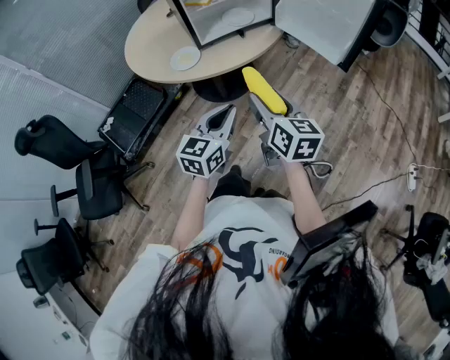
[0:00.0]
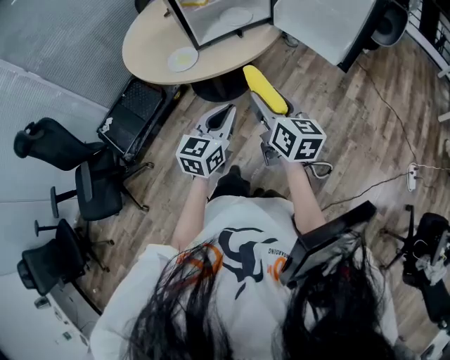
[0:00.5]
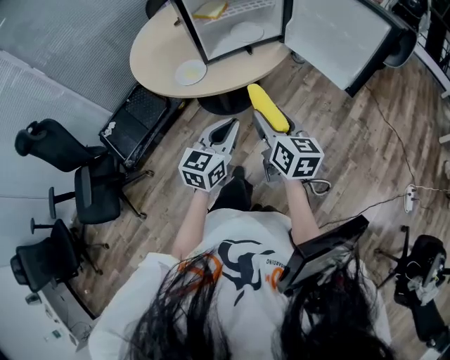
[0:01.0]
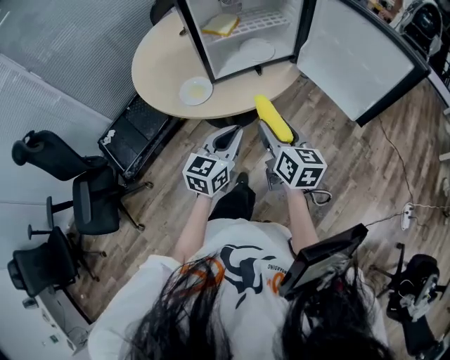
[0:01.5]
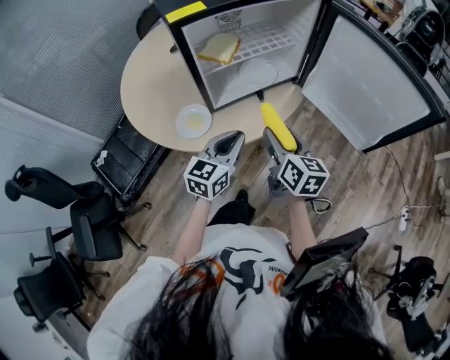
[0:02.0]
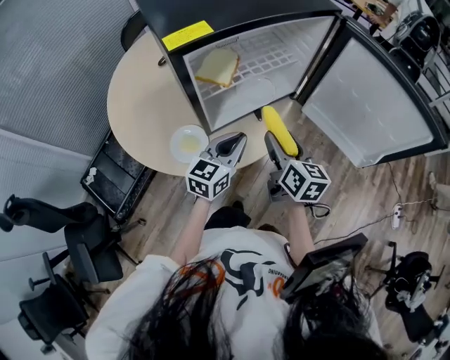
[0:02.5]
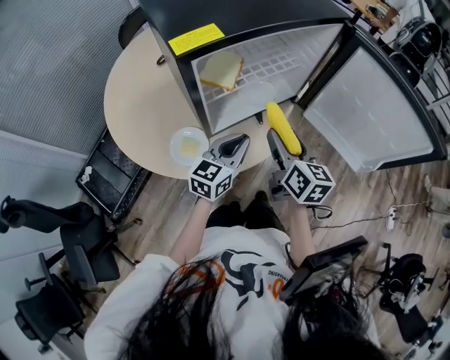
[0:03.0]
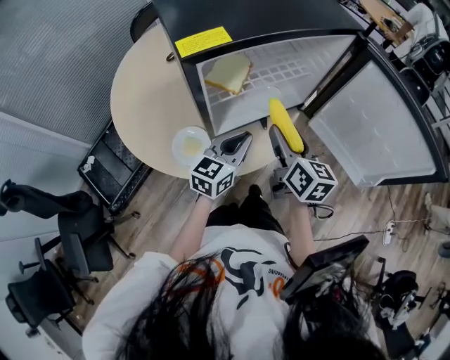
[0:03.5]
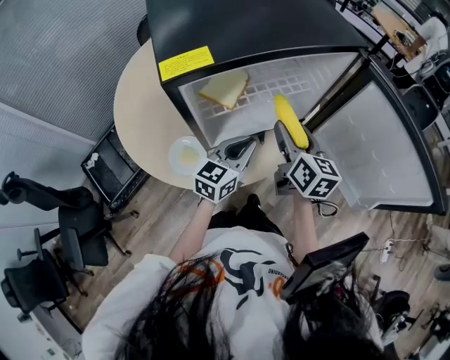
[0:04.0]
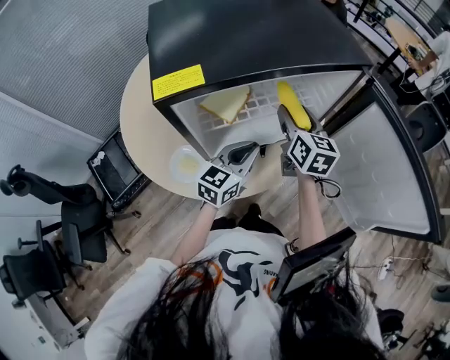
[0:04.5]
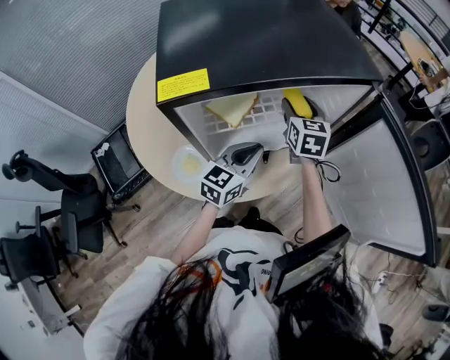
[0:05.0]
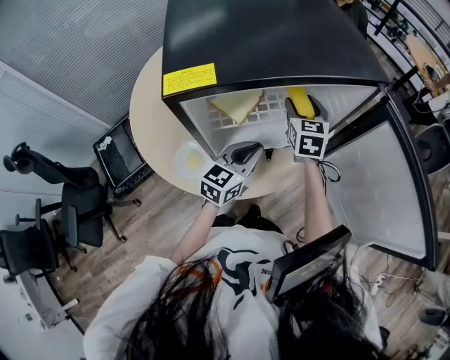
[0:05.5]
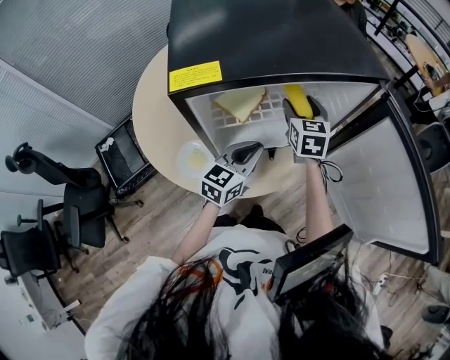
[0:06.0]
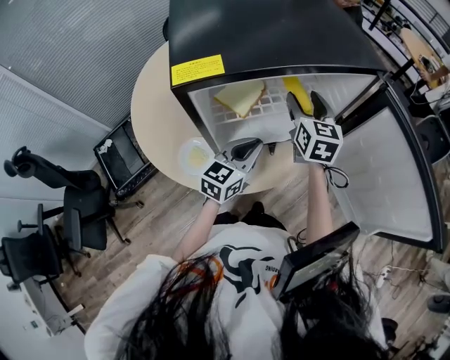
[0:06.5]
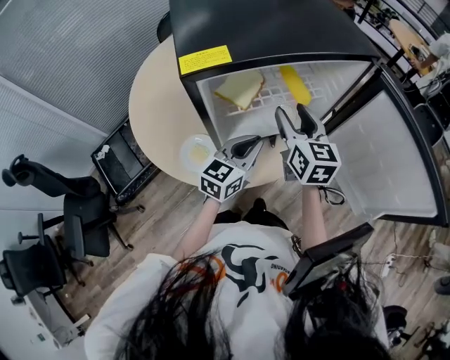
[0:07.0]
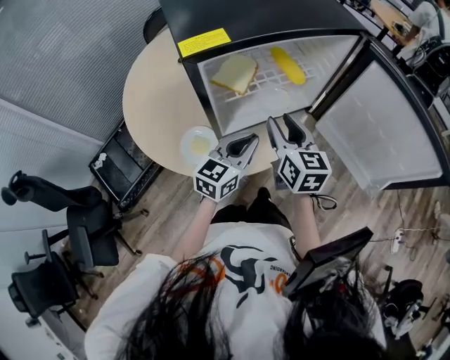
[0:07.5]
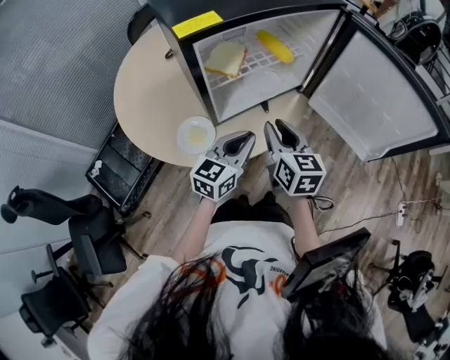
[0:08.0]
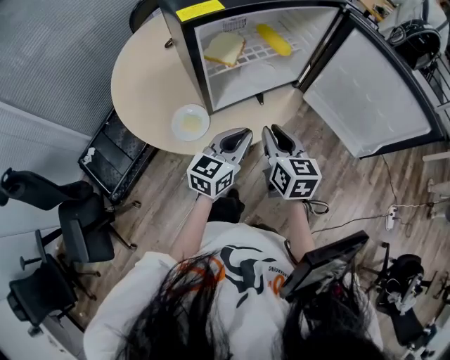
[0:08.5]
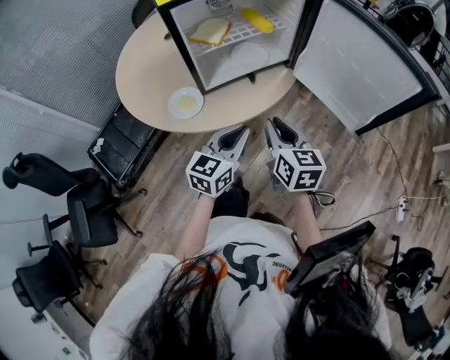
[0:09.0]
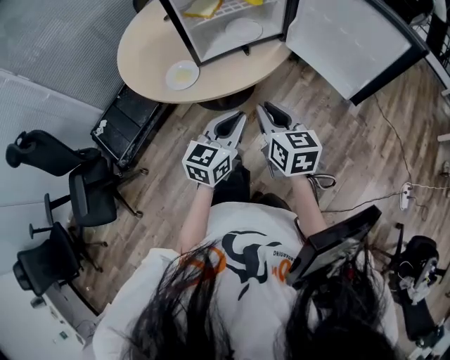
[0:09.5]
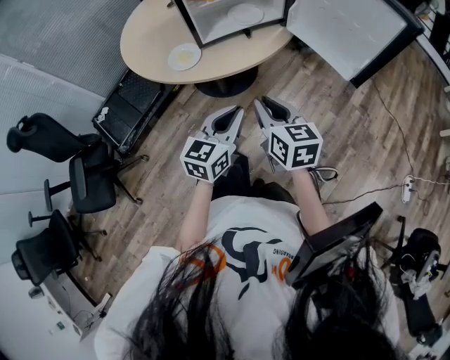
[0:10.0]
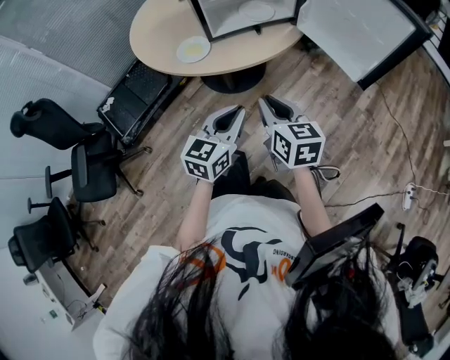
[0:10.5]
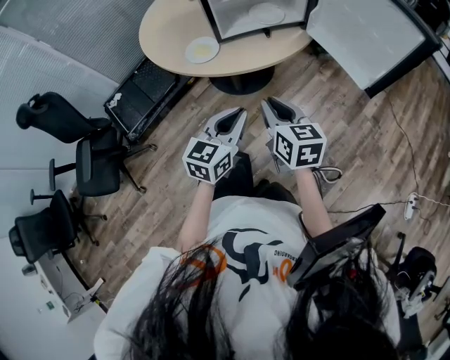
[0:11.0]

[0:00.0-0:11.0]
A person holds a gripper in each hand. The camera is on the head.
0:00.0 to 0:02.0: Both grippers travel together forward, approximately 25 cm.
0:02.0 to 0:03.5: The two grippers go approximately 10 cm forward.
0:03.5 to 0:05.5: The left gripper heads forward, covering roughly 10 cm; the right gripper goes roughly 25 cm forward, and swivels some 30 degrees.
0:05.5 to 0:07.5: The right gripper travels backward by approximately 20 cm, and turns by roughly 20 degrees, while the left gripper shifts some 10 cm backward.
0:07.5 to 0:09.0: Both grippers travel together backward and to the right, roughly 20 cm. The right gripper closes up.
0:09.0 to 0:11.0: The grippers both shift backward by some 15 cm.

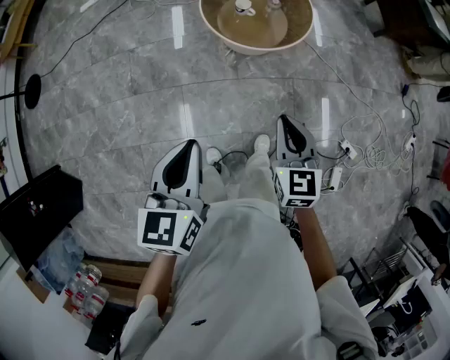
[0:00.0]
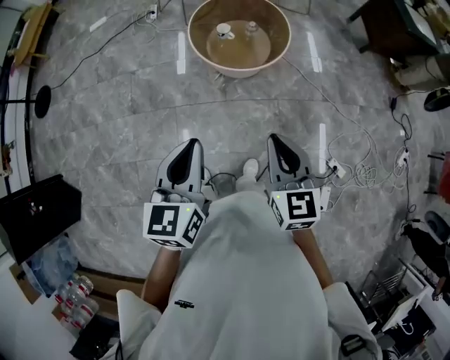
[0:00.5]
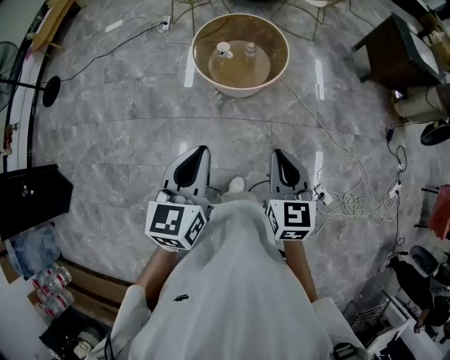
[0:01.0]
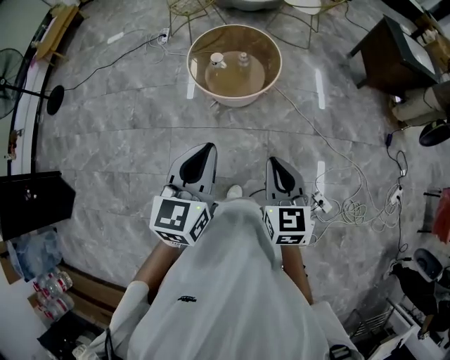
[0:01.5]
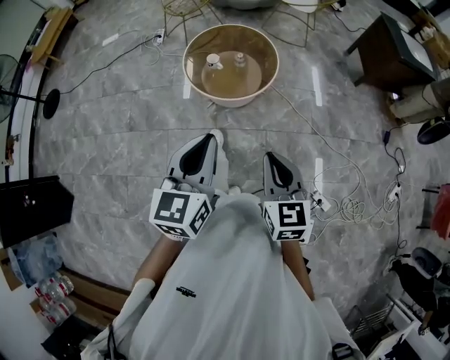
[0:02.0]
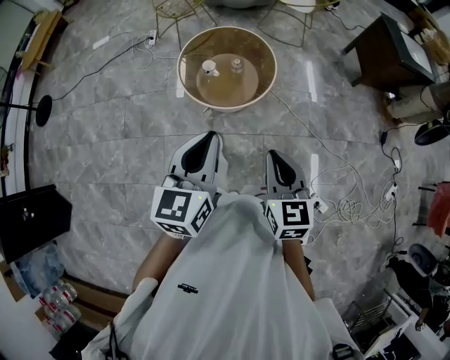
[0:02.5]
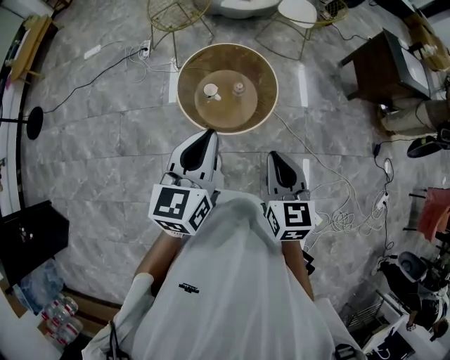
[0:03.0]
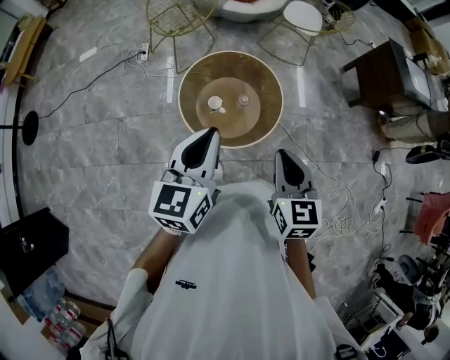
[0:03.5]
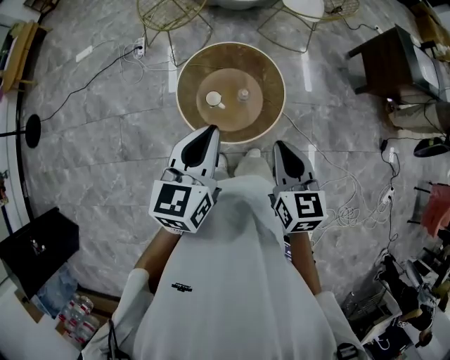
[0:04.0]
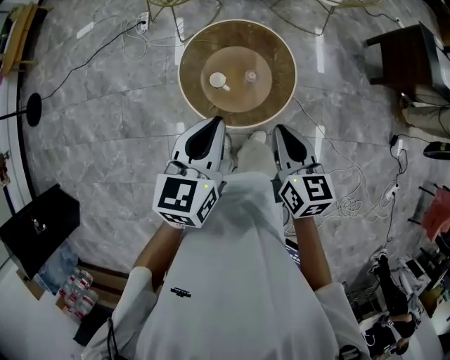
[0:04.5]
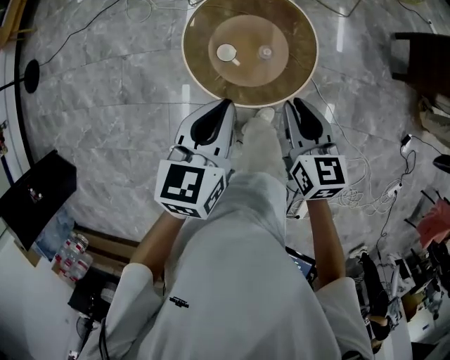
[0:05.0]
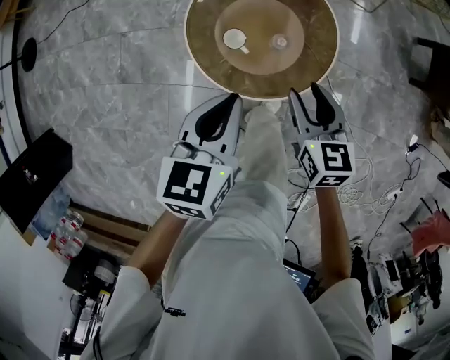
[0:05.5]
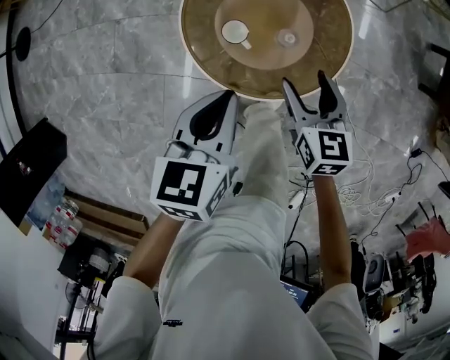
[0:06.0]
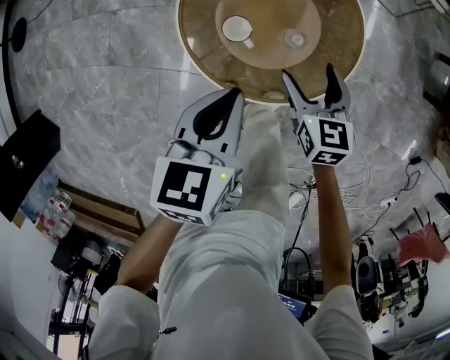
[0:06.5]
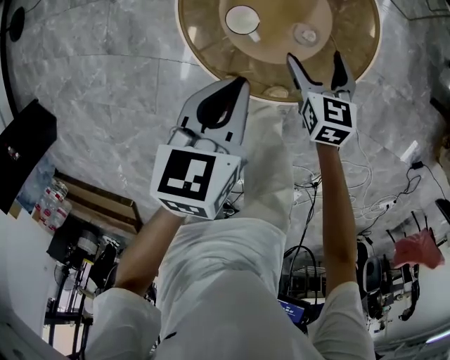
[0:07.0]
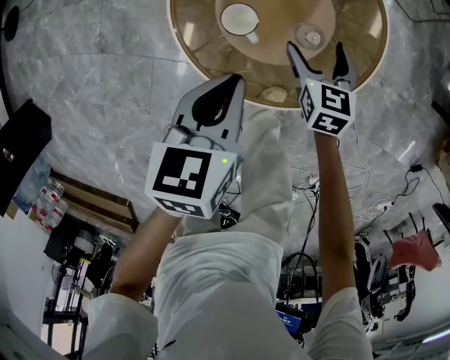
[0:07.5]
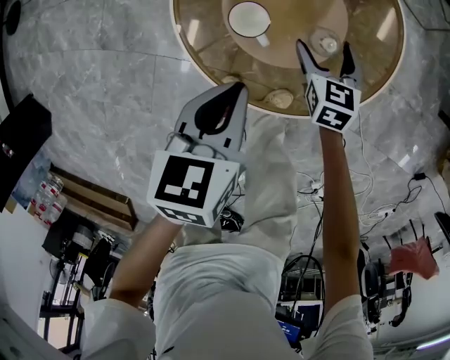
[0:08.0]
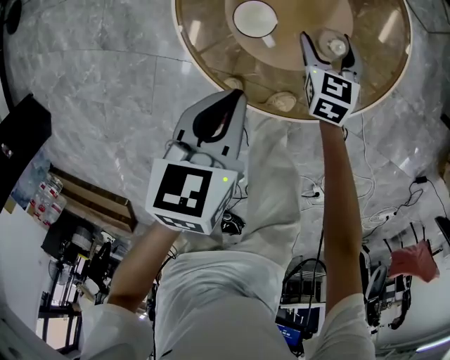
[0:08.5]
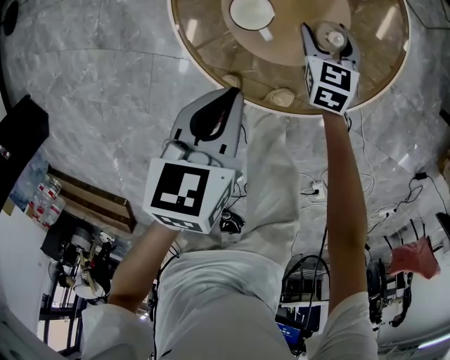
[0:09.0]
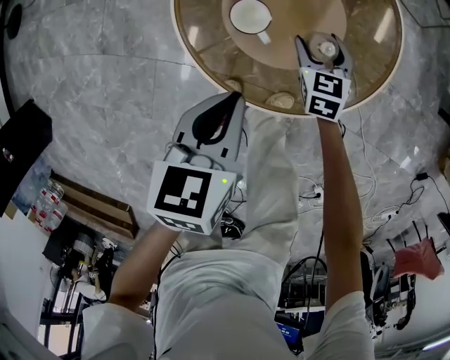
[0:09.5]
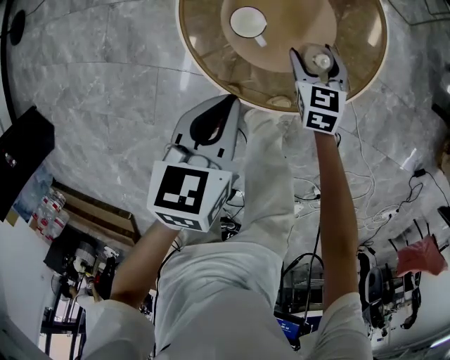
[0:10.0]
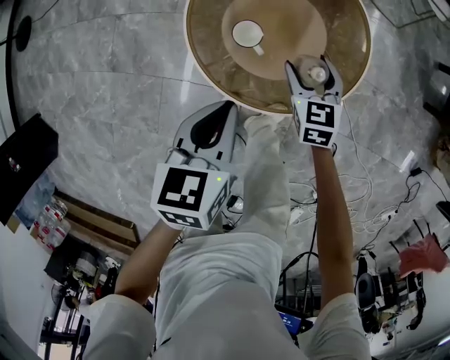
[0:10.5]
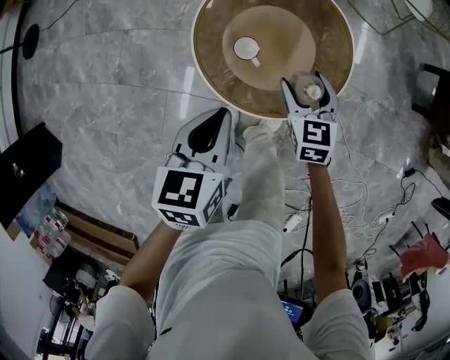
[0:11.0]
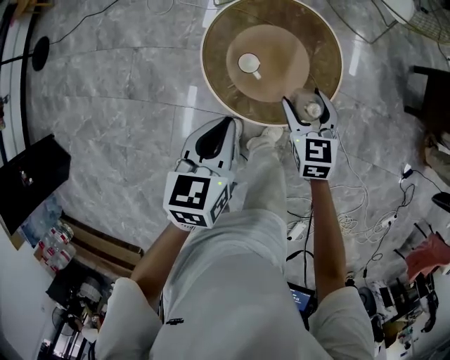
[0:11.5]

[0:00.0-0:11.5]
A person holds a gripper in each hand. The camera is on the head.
0:00.0 to 0:02.0: The left gripper goes about 25 cm to the right. Meanwhile the right gripper travels to the right and upward by about 20 cm.
0:02.0 to 0:04.0: Both grippers move forward, about 35 cm.
0:04.0 to 0:06.0: The right gripper travels downward and forward by some 35 cm, and opens, while the left gripper shifts some 25 cm downward, and swivels about 30 degrees.
0:06.0 to 0:07.5: The right gripper goes approximately 20 cm downward and forward, while the left gripper heads downward, covering roughly 15 cm.
0:07.5 to 0:09.5: The right gripper is displaced downward by some 5 cm.
0:09.5 to 0:11.5: The grippers both shift upward by about 25 cm.

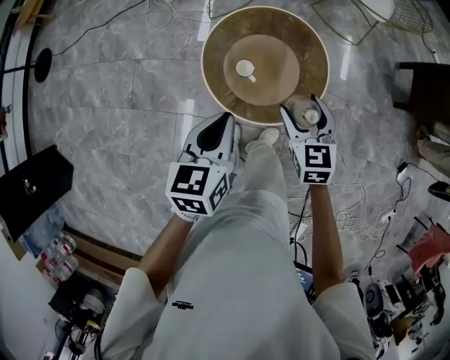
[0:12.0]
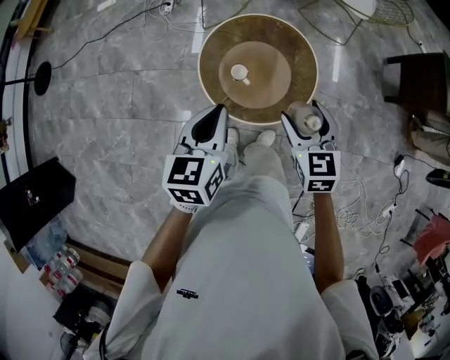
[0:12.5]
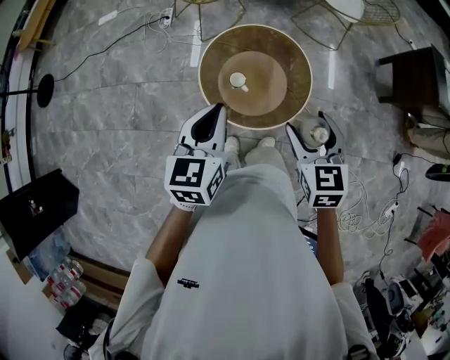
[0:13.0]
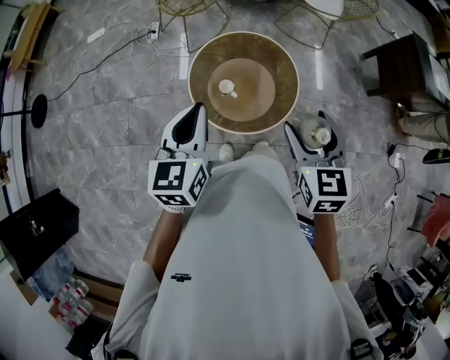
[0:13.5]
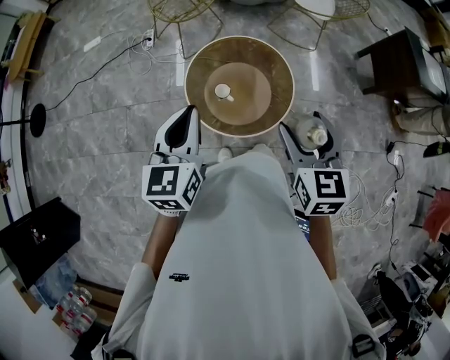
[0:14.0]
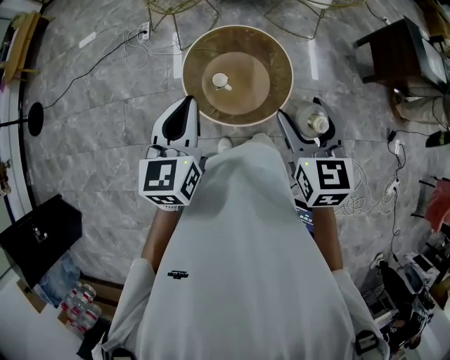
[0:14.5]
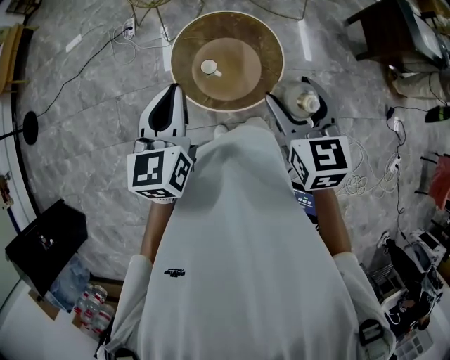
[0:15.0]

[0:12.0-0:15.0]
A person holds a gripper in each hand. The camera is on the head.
0:12.0 to 0:13.5: The left gripper heads upward, covering about 10 cm. The right gripper goes about 20 cm upward and backward.
0:13.5 to 0:15.0: The grippers stay close to where they were, moving slightly.

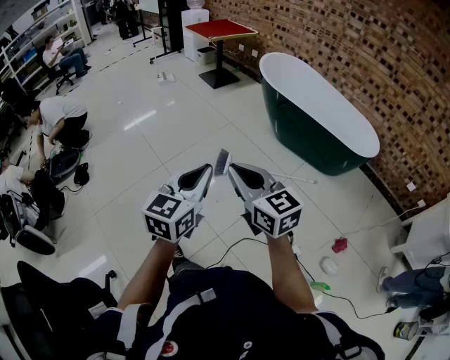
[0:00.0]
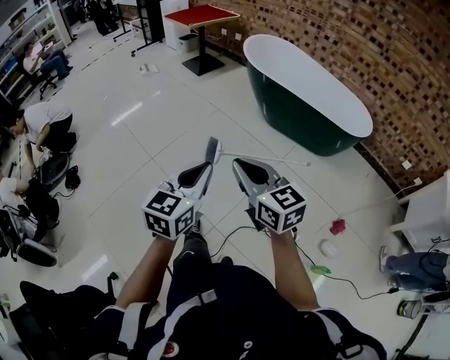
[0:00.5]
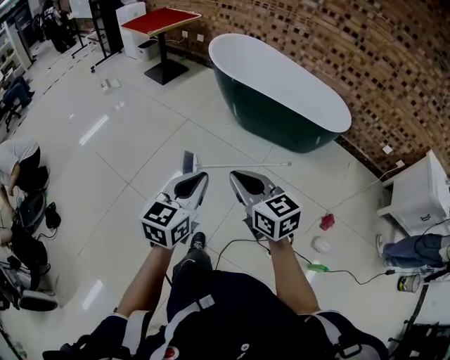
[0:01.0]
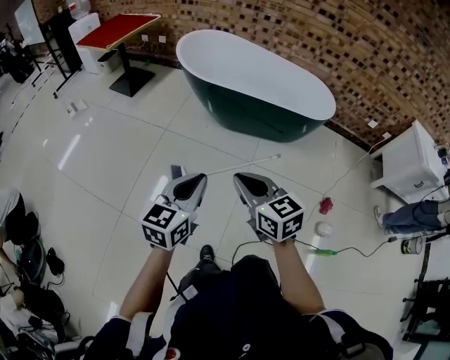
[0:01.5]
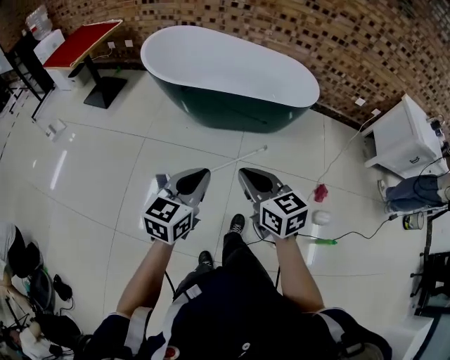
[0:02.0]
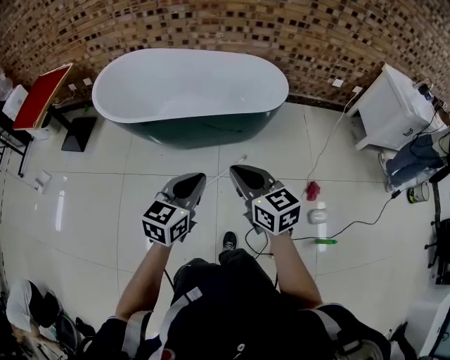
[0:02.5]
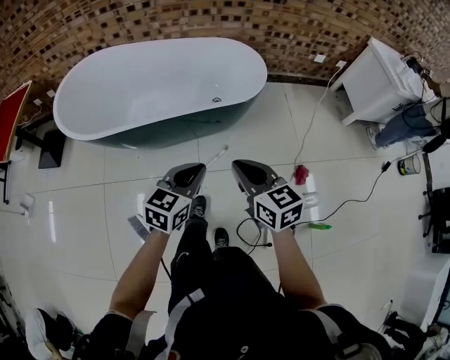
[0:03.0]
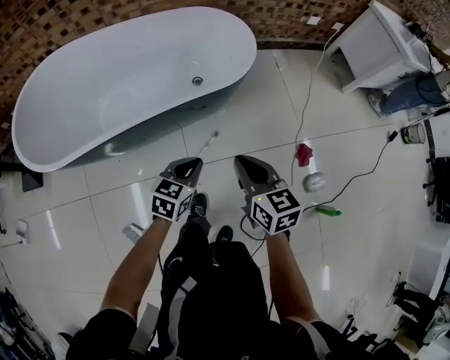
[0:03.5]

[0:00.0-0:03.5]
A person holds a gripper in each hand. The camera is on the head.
0:00.0 to 0:02.0: The left gripper changes place by about 40 cm, and swivels about 40 degrees, while the right gripper ends up about 35 cm from where it was, and changes its angle by approximately 40 degrees.
0:02.0 to 0:03.5: Both grippers are carried some 40 cm. The left gripper swivels roughly 40 degrees. Meanwhile the right gripper turns by approximately 30 degrees.
